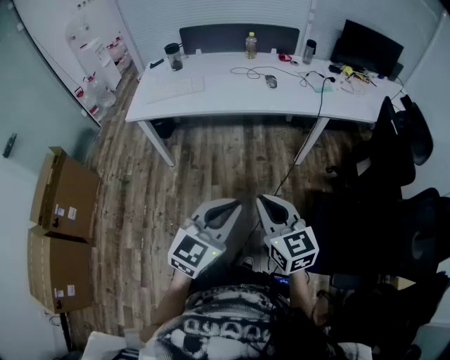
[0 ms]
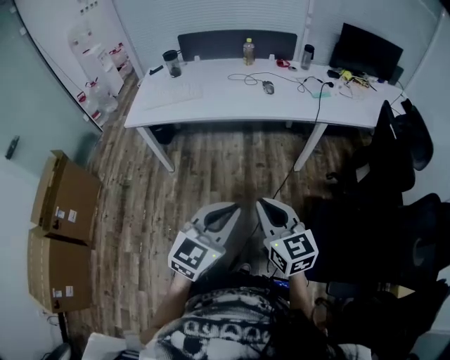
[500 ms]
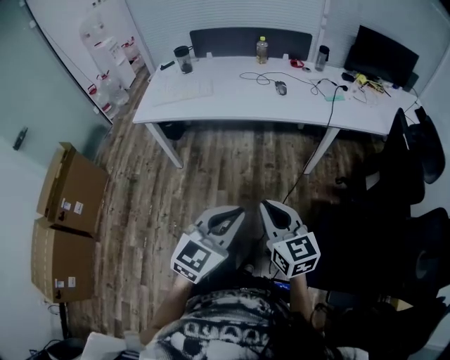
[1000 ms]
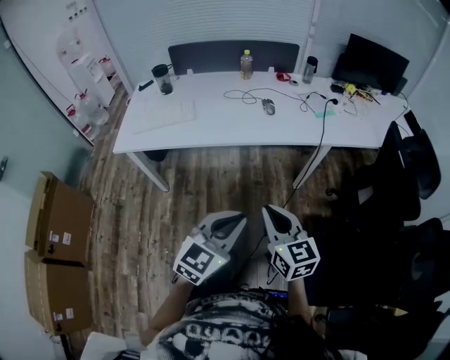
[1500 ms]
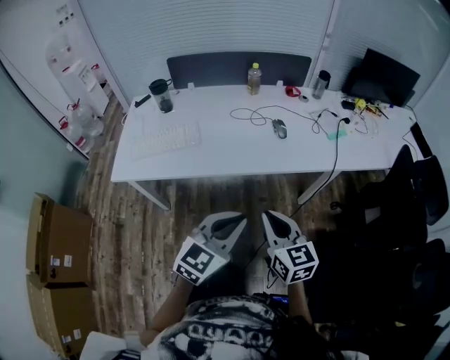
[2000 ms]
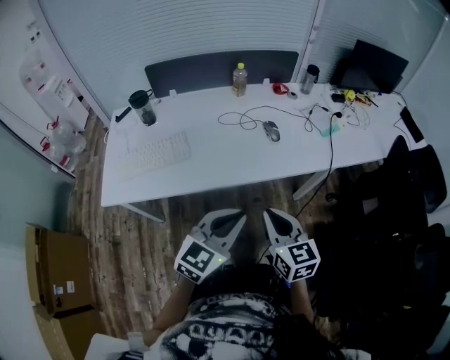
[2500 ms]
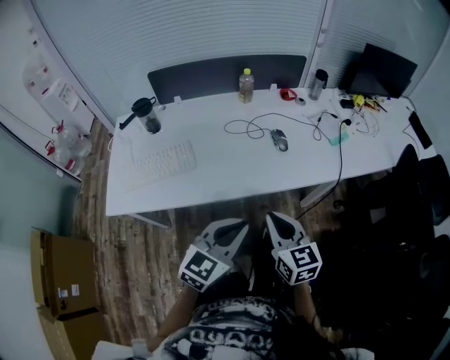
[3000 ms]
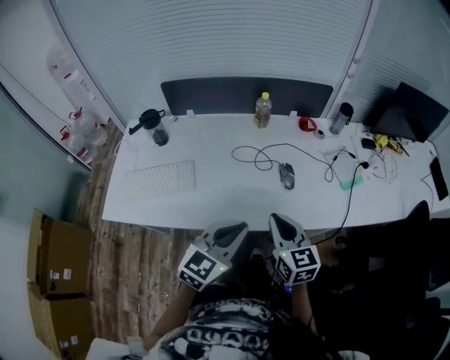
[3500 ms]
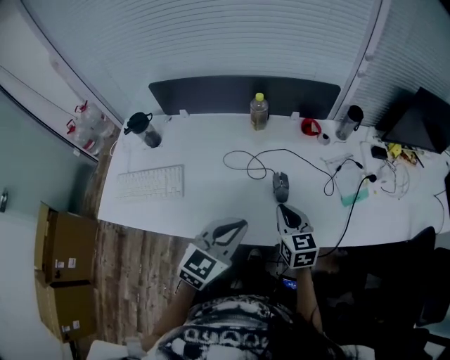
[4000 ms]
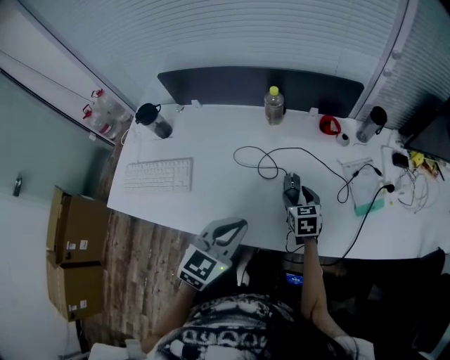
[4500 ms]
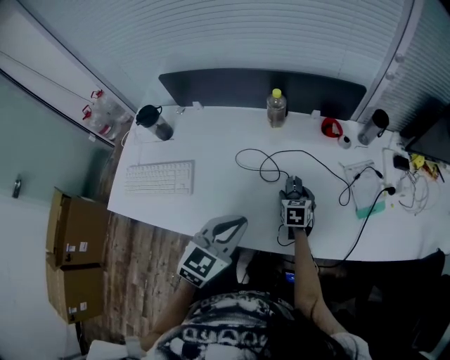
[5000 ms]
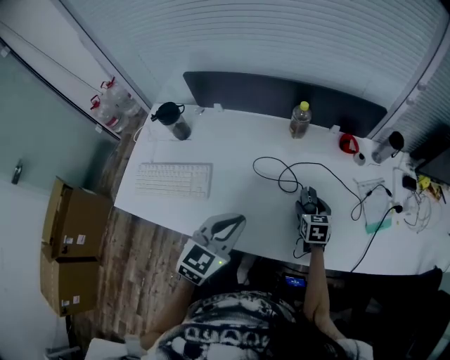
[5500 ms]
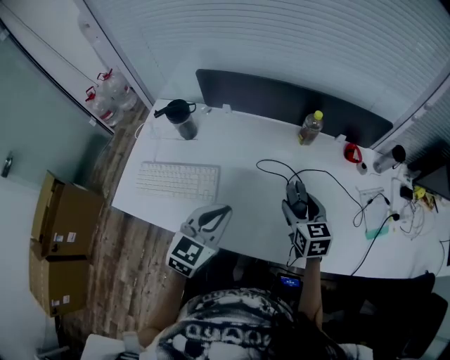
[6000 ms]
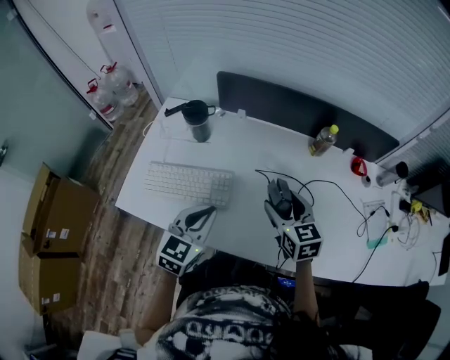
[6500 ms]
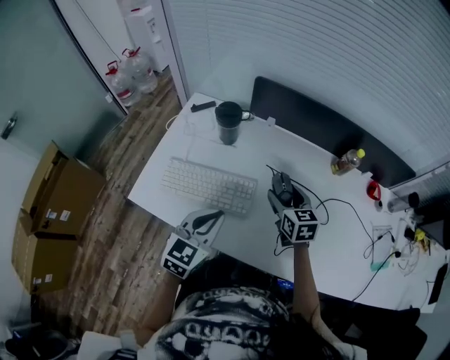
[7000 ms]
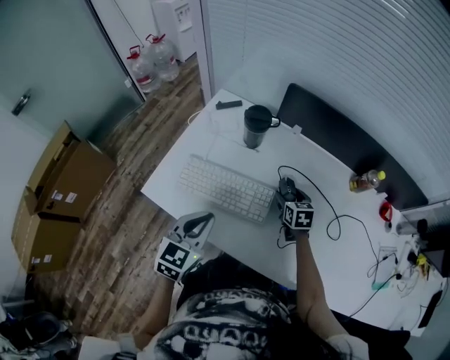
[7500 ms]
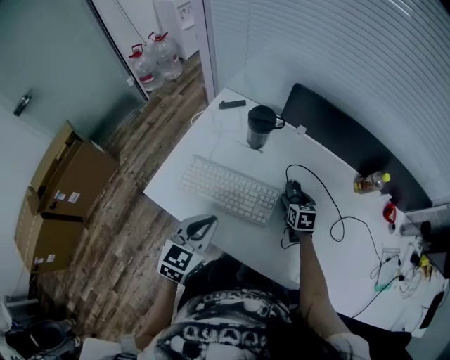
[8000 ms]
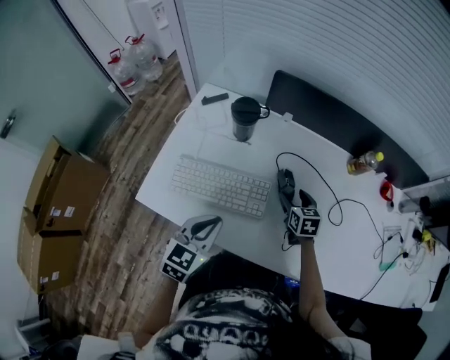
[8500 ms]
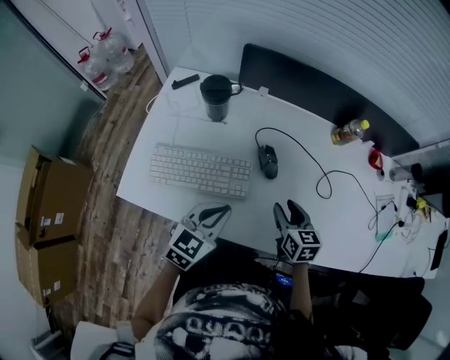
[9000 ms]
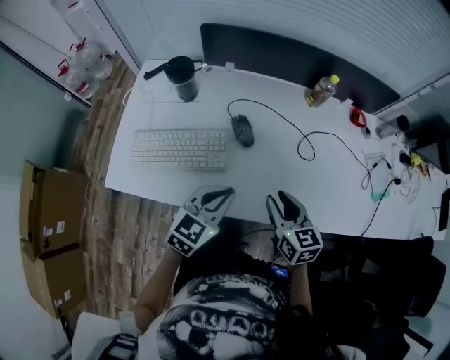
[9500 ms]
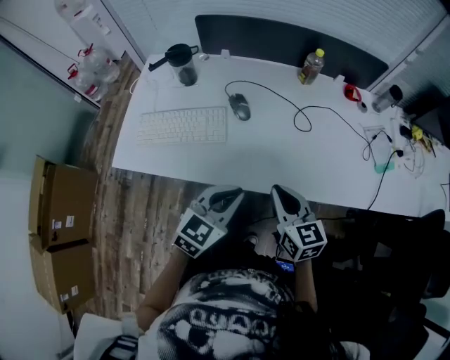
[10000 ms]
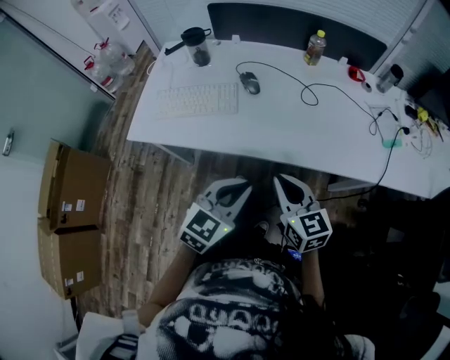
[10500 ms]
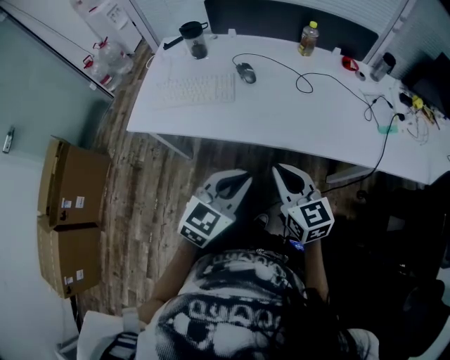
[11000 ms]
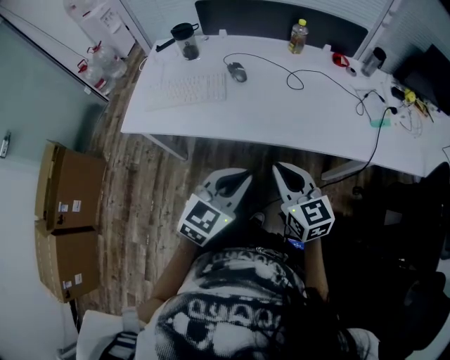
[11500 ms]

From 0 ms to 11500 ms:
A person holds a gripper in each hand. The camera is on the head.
From 0 ms to 2000 ms: Both grippers move forward, about 30 cm.
From 2000 ms to 4000 ms: The two grippers go approximately 35 cm forward.
From 4000 ms to 6000 ms: The left gripper is displaced to the left by approximately 20 cm. Meanwhile the right gripper shifts approximately 15 cm to the left and forward, moves approximately 15 cm downward and comes back, and opens up.
From 6000 ms to 7500 ms: The left gripper heads to the left, covering approximately 25 cm, and turns by roughly 20 degrees, while the right gripper travels to the left, forward and downward by some 30 cm.
From 7500 ms to 9500 ms: The left gripper travels to the right by some 20 cm, and rotates some 30 degrees. Meanwhile the right gripper moves backward, upward and to the right, about 30 cm, rotates approximately 20 degrees, and closes its fingers.
From 9500 ms to 11500 ms: The right gripper shifts approximately 25 cm backward, and closes up, while the left gripper heads backward and to the right, covering roughly 30 cm.

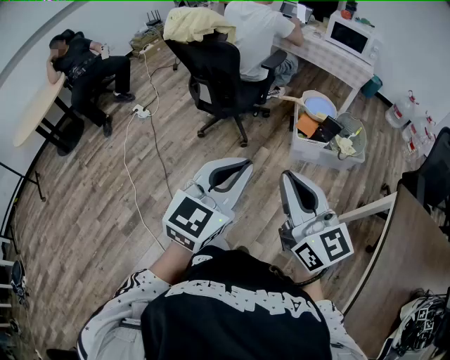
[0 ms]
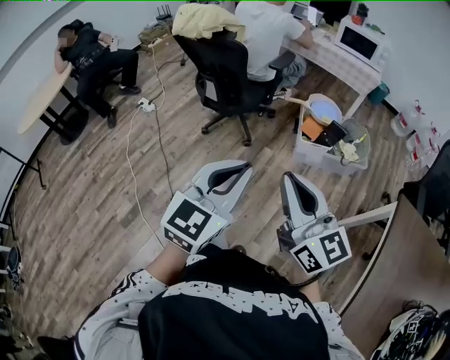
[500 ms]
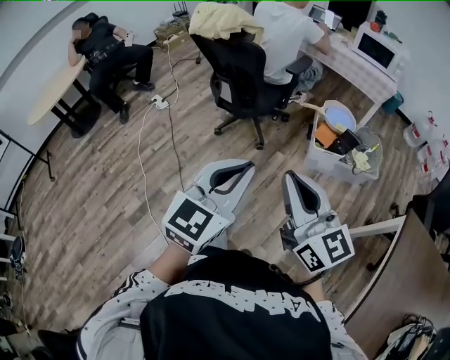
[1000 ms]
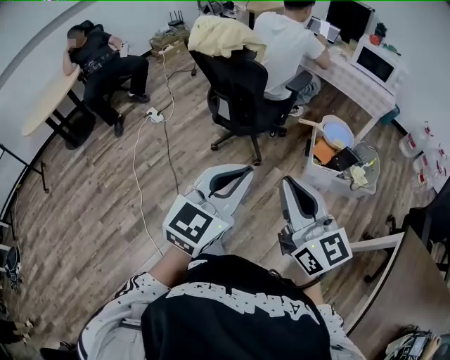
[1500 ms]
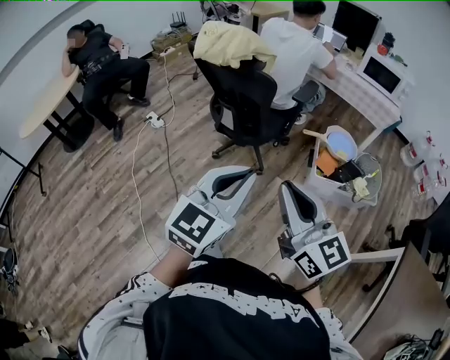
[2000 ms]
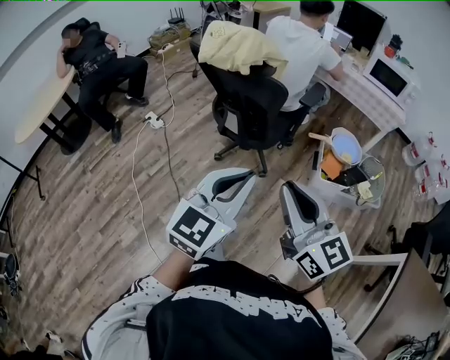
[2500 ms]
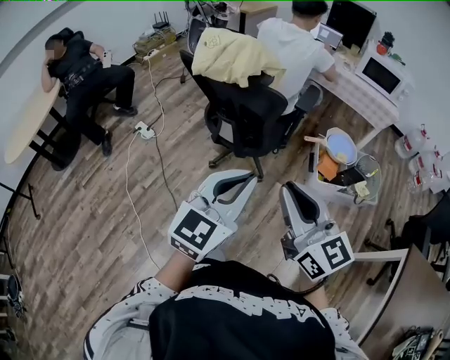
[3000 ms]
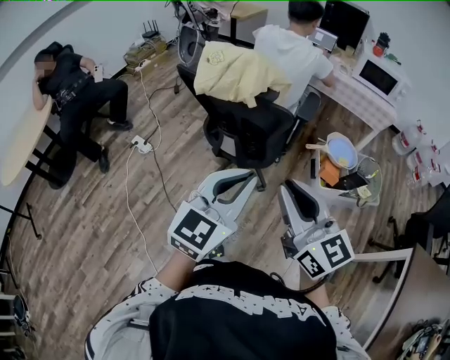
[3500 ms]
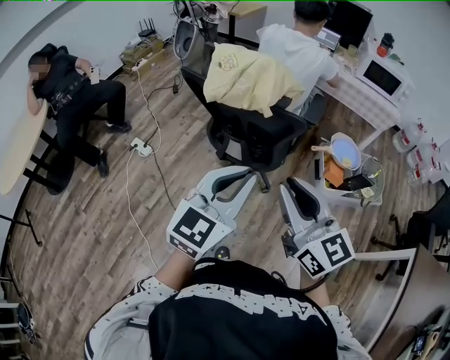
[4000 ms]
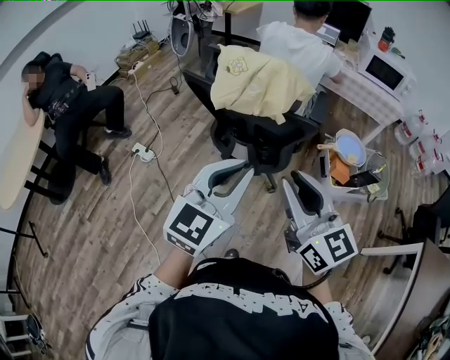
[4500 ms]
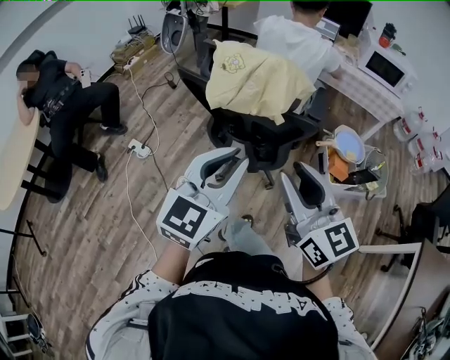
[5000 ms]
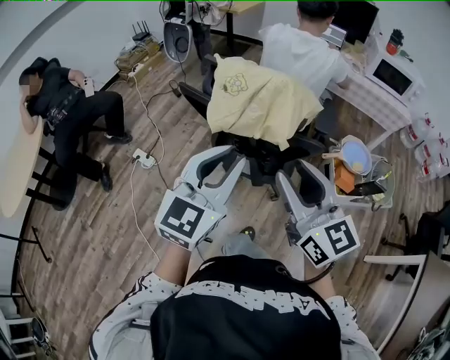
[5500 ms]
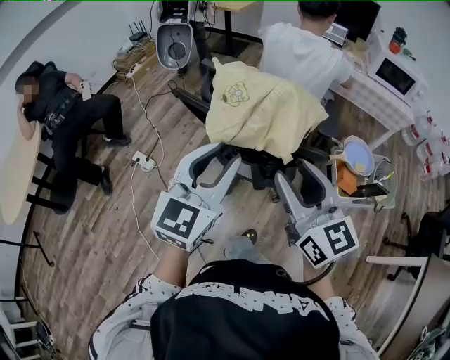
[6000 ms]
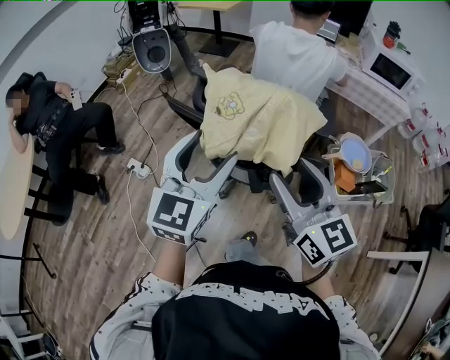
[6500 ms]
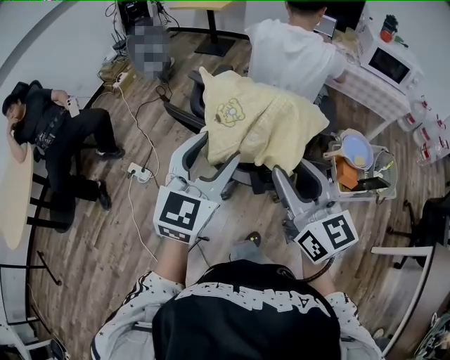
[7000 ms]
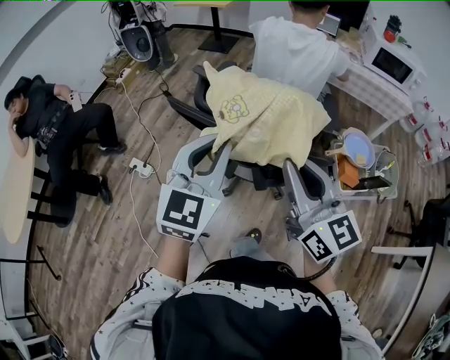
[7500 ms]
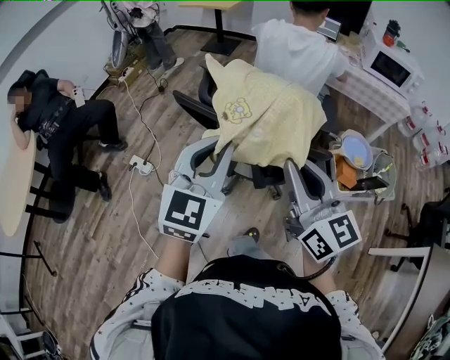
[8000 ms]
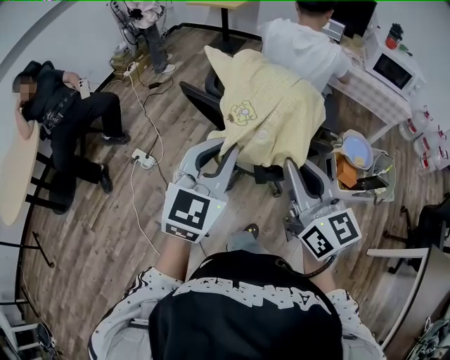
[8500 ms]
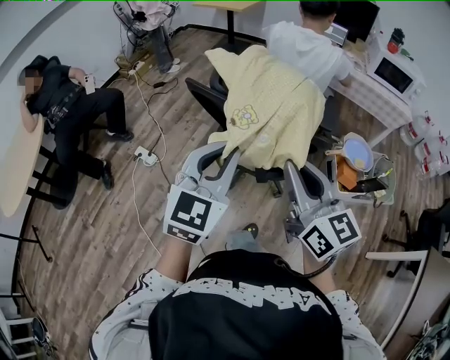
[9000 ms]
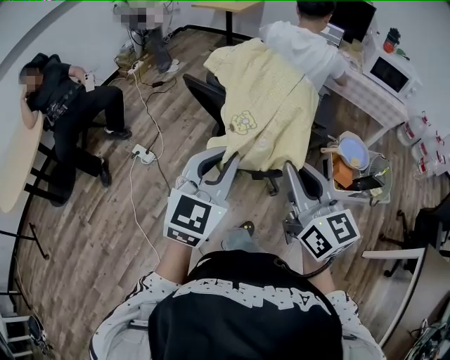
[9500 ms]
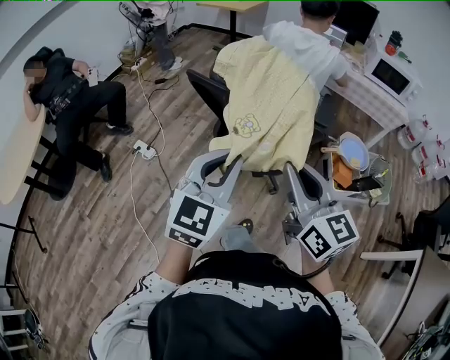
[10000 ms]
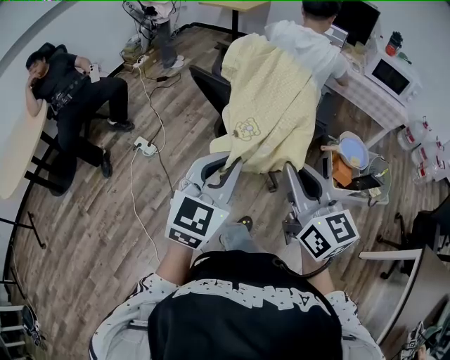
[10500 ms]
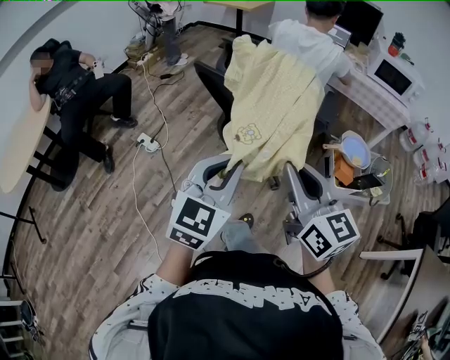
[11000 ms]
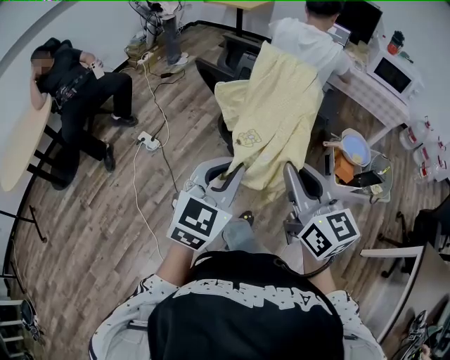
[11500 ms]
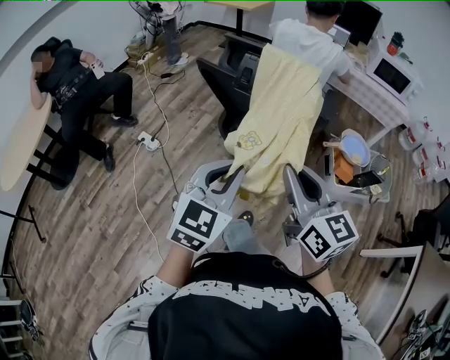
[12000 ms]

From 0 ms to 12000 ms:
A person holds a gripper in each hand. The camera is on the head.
From 0 ms to 2000 ms: Both grippers travel together forward and to the left, approximately 20 cm.
From 2000 ms to 4000 ms: The two grippers go about 25 cm forward and to the left.
From 4000 ms to 6000 ms: The left gripper is displaced forward and to the left by about 20 cm, and opens up. Meanwhile the right gripper goes about 15 cm forward, and opens.
From 6000 ms to 8000 ms: The left gripper opens, then closes again; the right gripper closes.
From 8000 ms to 10000 ms: The two grippers go roughly 10 cm backward.
From 10000 ms to 12000 ms: Both grippers travel together backward, approximately 5 cm.

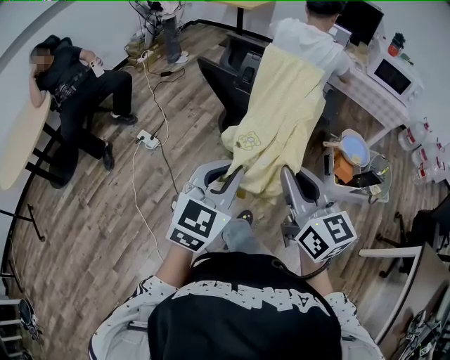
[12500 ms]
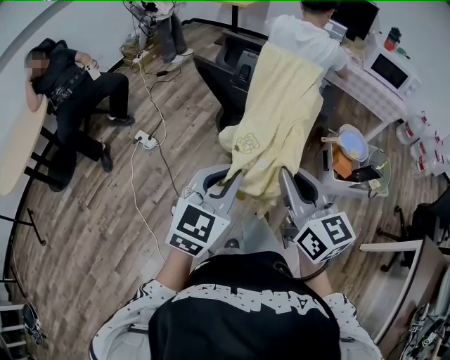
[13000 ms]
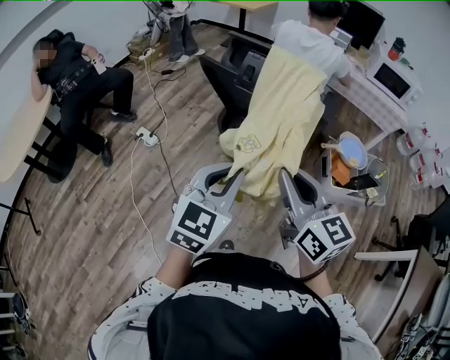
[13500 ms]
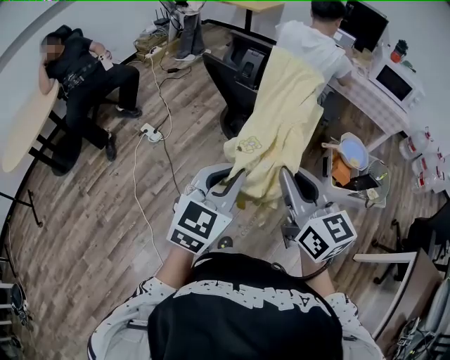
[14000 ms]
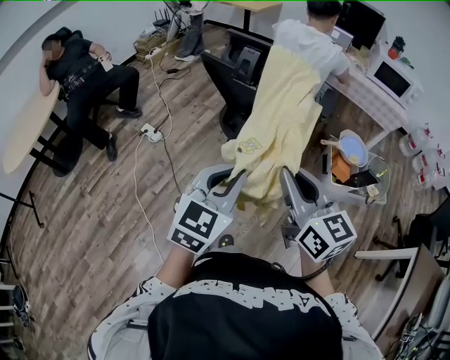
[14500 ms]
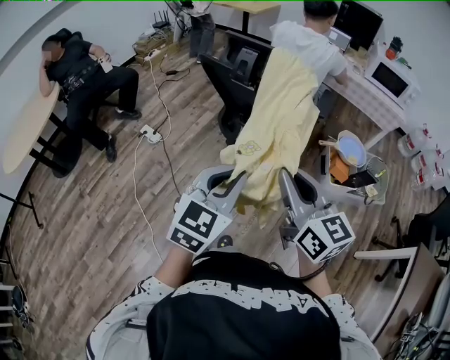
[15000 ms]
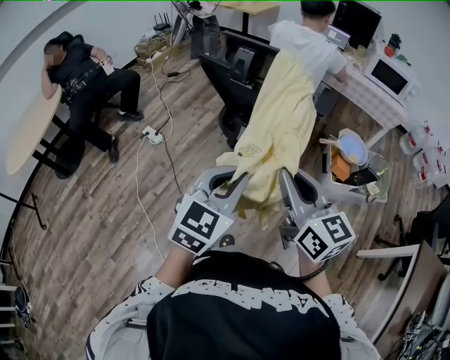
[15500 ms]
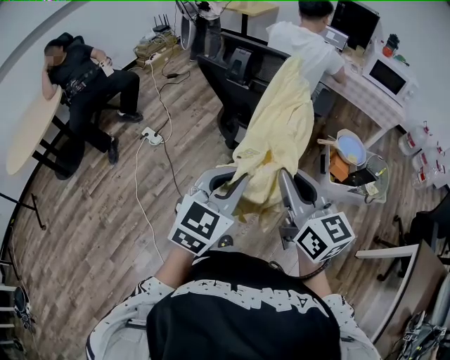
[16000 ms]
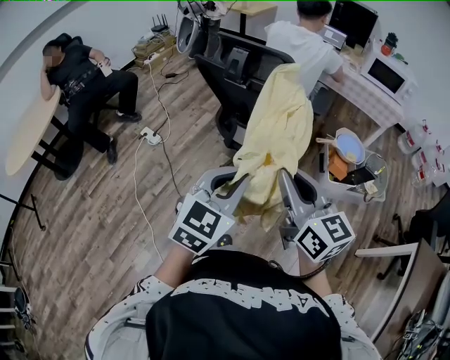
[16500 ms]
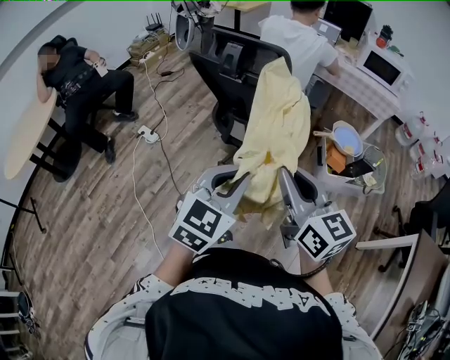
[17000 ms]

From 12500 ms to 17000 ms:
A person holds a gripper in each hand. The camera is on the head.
From 12500 ms to 14500 ms: Both grippers travel together backward, approximately 5 cm.
From 14500 ms to 17000 ms: The left gripper ends up roughly 5 cm from where it was, while the right gripper shifts by roughly 5 cm.
